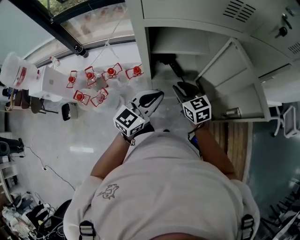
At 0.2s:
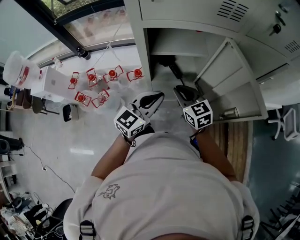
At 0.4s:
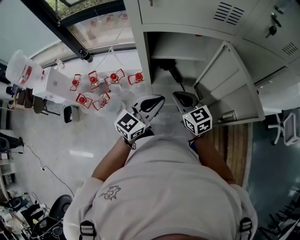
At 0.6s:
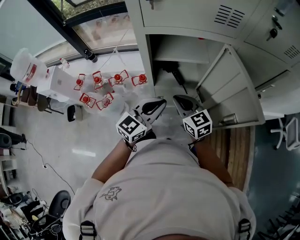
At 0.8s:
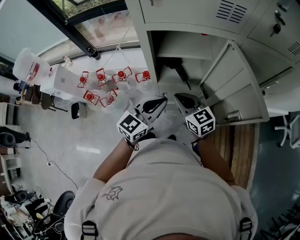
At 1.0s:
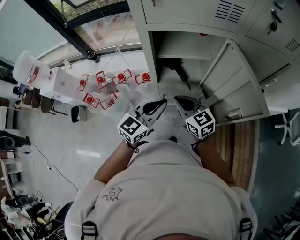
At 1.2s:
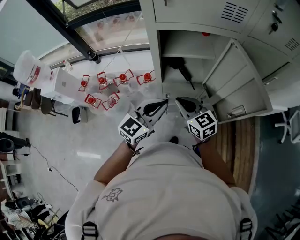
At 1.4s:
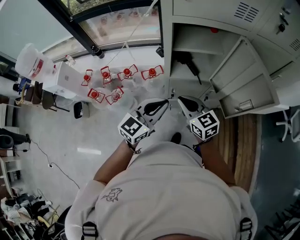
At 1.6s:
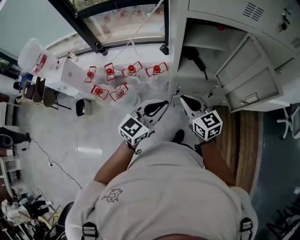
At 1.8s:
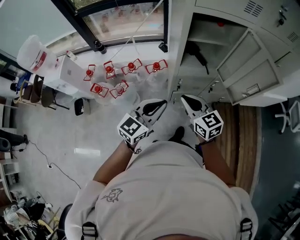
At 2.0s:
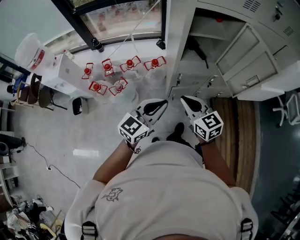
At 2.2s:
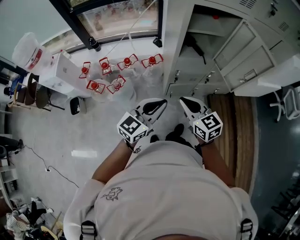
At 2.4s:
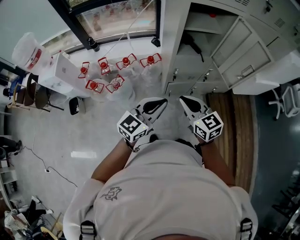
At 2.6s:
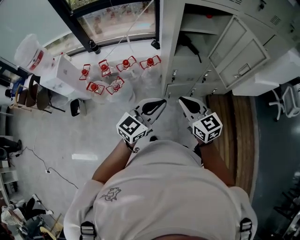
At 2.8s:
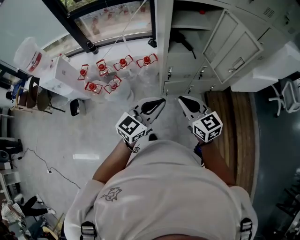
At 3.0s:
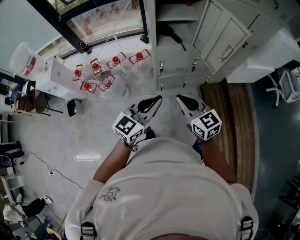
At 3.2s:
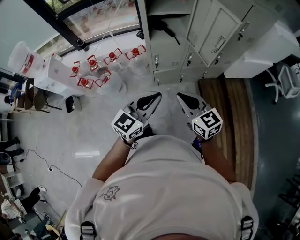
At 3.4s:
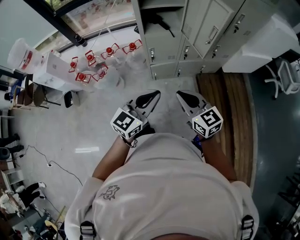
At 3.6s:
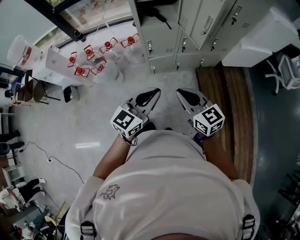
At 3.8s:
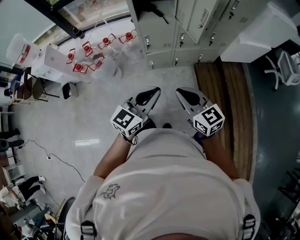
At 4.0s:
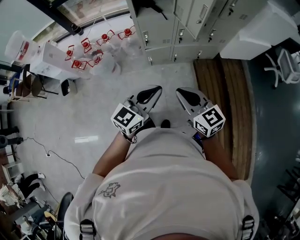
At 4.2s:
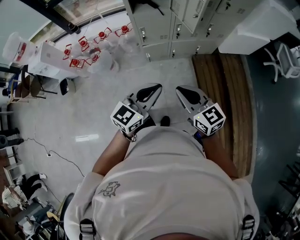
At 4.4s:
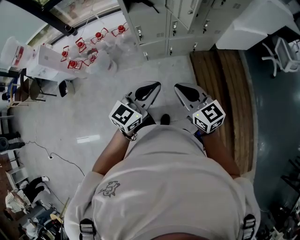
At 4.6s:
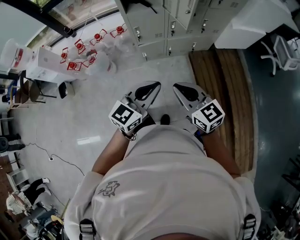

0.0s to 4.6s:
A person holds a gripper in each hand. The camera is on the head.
0.0s to 1.6s: Both grippers travel together backward and to the left, approximately 20 cm.
1.6s to 3.0s: Both grippers move backward, roughly 20 cm.
3.0s to 4.6s: The left gripper goes about 25 cm to the right and backward. Meanwhile the right gripper moves backward and to the right, some 25 cm.

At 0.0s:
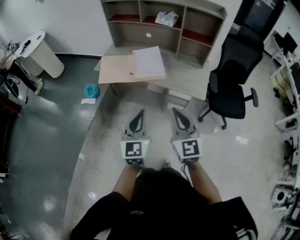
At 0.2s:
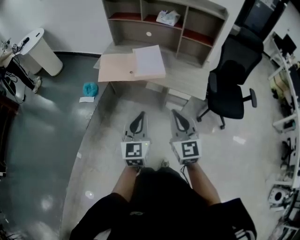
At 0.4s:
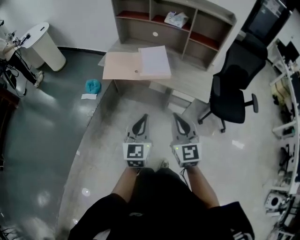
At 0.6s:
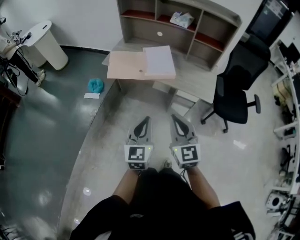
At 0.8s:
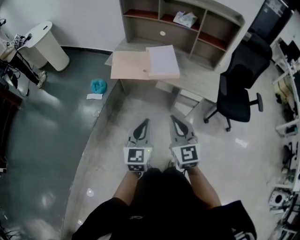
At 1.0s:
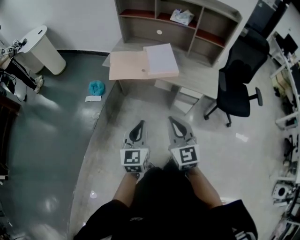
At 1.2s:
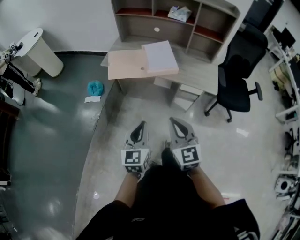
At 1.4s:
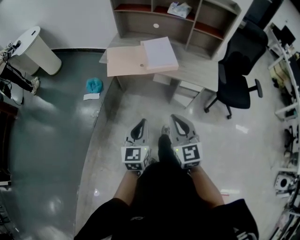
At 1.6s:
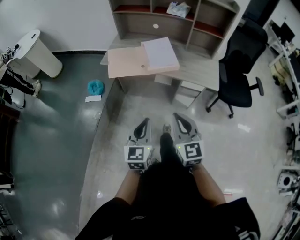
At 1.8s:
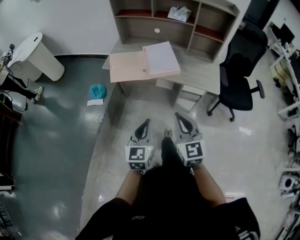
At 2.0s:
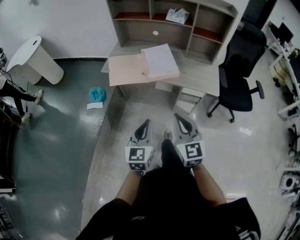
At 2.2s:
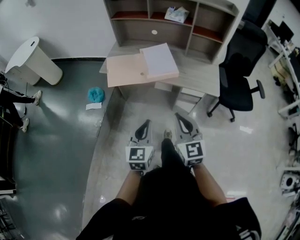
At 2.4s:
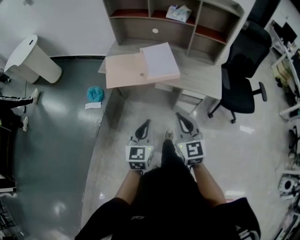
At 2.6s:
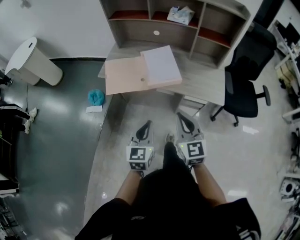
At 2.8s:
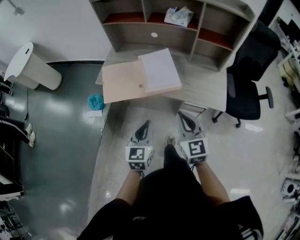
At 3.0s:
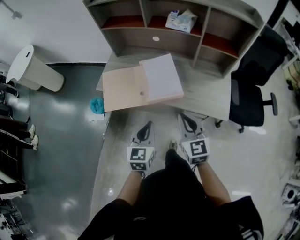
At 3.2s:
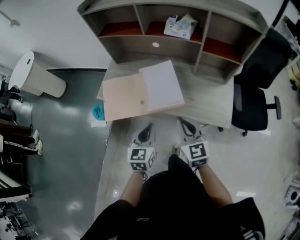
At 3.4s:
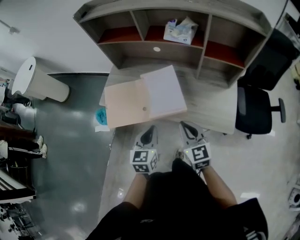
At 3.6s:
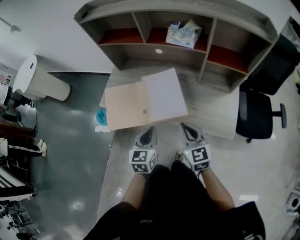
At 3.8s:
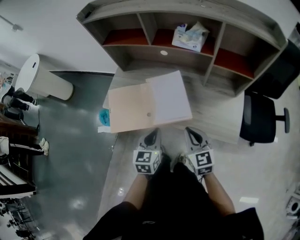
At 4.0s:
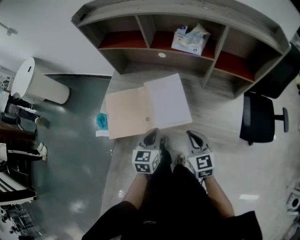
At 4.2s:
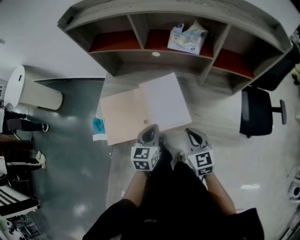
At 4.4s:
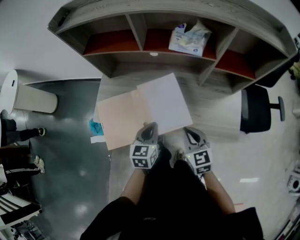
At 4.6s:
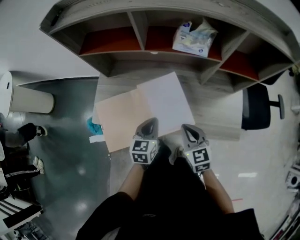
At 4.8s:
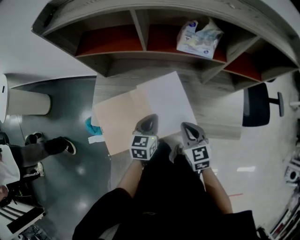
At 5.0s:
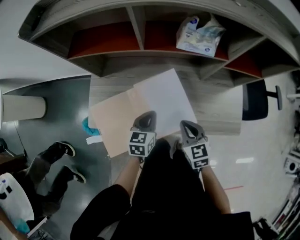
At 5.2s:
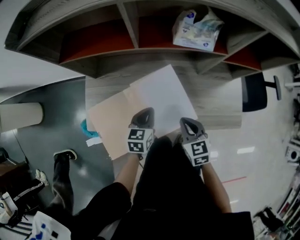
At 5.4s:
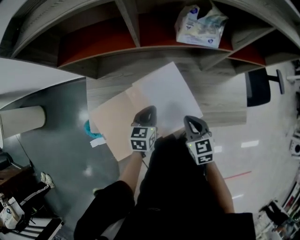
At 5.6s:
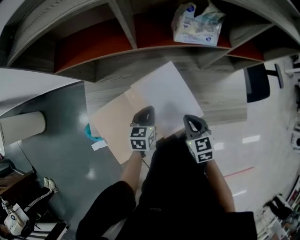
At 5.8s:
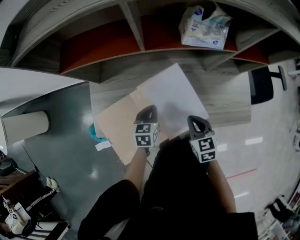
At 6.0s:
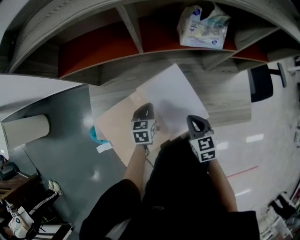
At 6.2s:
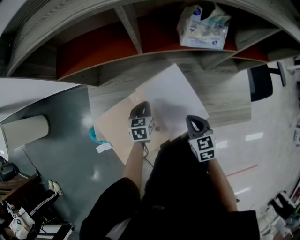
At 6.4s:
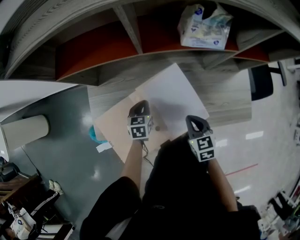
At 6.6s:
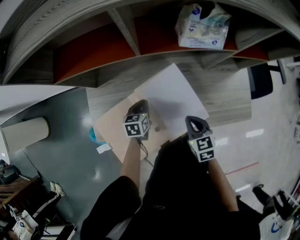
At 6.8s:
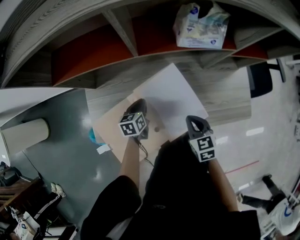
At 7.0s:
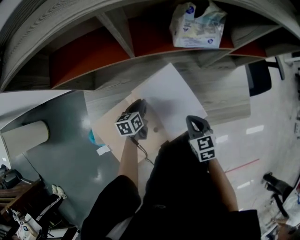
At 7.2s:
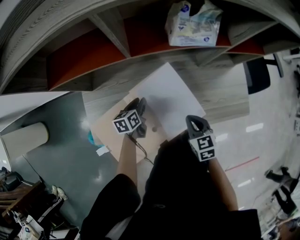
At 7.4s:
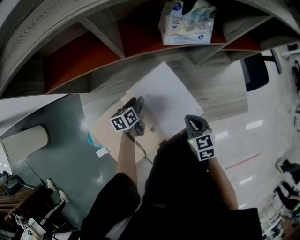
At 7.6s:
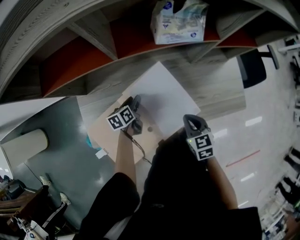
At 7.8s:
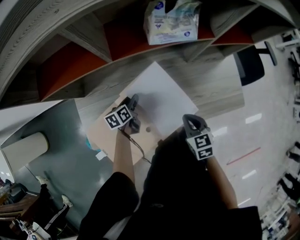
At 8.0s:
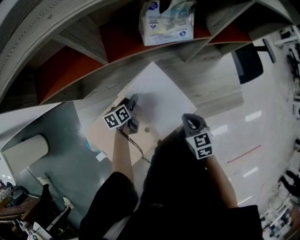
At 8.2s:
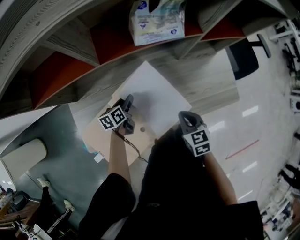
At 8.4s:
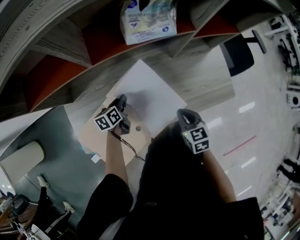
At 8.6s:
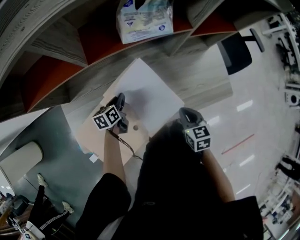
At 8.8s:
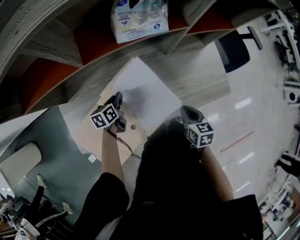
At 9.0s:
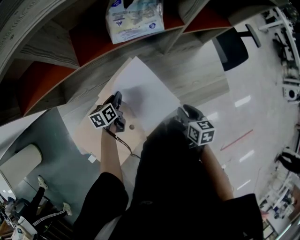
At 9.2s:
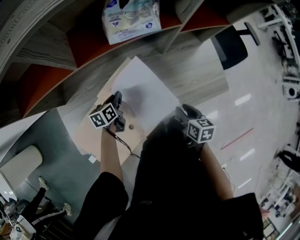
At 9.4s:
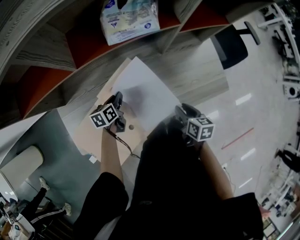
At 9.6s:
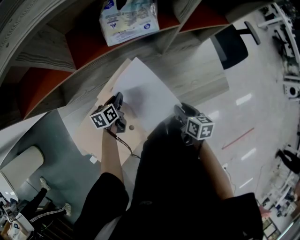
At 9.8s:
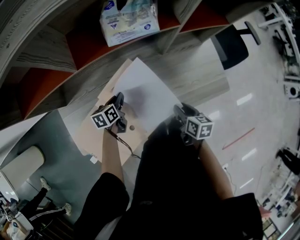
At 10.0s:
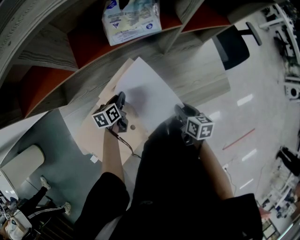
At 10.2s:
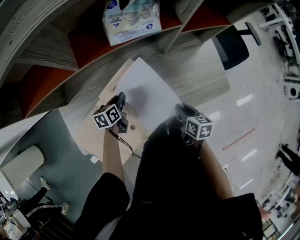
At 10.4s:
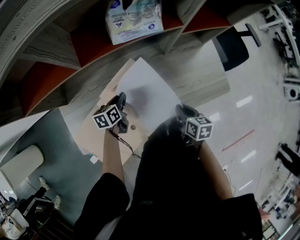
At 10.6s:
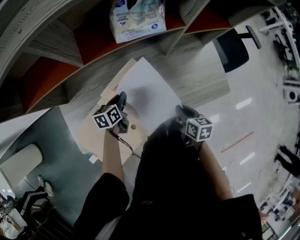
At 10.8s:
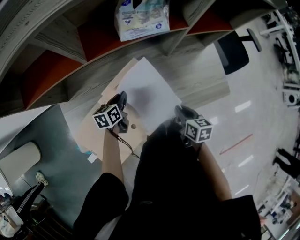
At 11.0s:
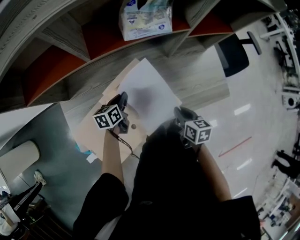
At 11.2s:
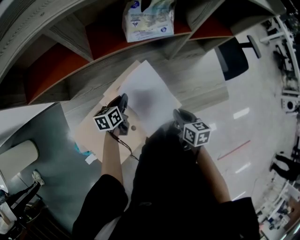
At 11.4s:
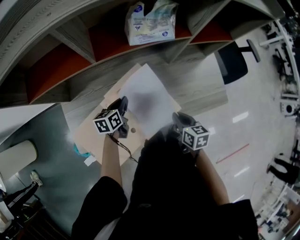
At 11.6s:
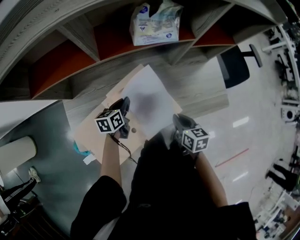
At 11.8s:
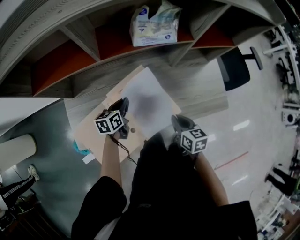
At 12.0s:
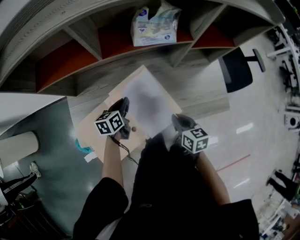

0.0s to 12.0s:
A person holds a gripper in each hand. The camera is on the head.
0.0s to 1.6s: The two grippers go approximately 15 cm to the left and downward.
1.6s to 3.0s: Both grippers travel together forward, some 25 cm.
3.0s to 4.4s: The left gripper goes roughly 20 cm forward. Meanwhile the right gripper moves forward and downward, approximately 20 cm.
4.4s to 6.0s: The left gripper shifts approximately 20 cm downward, forward and to the left. The right gripper moves downward, forward and to the left, about 10 cm, and turns by approximately 20 degrees.
6.0s to 7.6s: The left gripper heads downward and forward, covering some 5 cm, changes its angle by some 30 degrees, and opens.
7.6s to 9.0s: The right gripper shifts some 10 cm to the right, changes its angle by some 30 degrees, and opens up; the left gripper closes.
9.0s to 10.4s: There are only small adjustments of the grippers.
10.4s to 12.0s: The two grippers go approximately 5 cm upward.

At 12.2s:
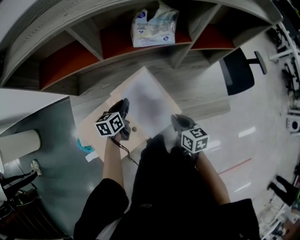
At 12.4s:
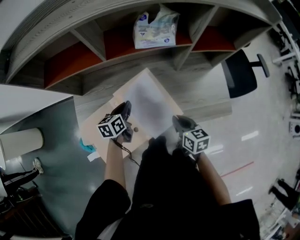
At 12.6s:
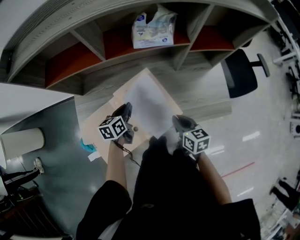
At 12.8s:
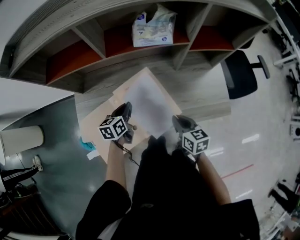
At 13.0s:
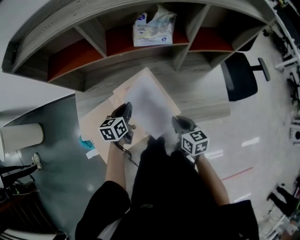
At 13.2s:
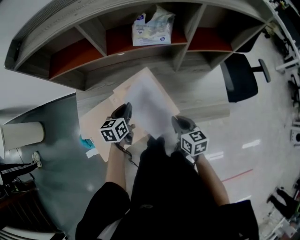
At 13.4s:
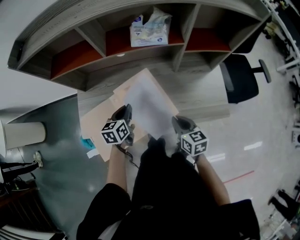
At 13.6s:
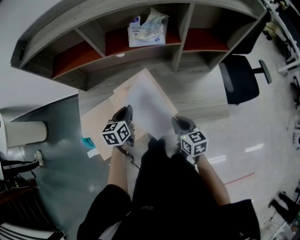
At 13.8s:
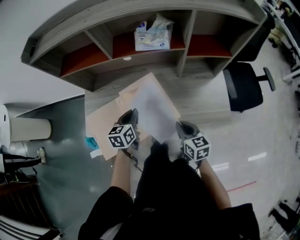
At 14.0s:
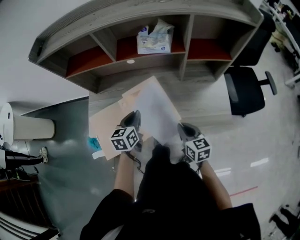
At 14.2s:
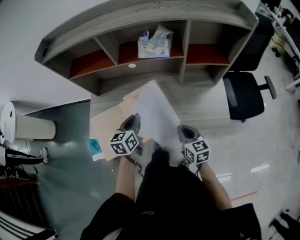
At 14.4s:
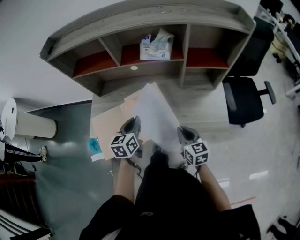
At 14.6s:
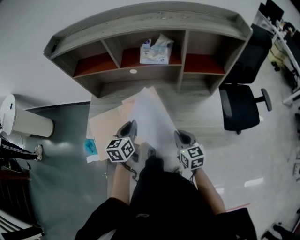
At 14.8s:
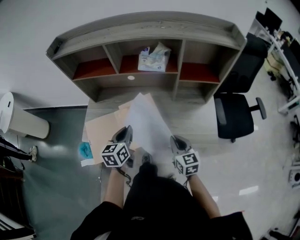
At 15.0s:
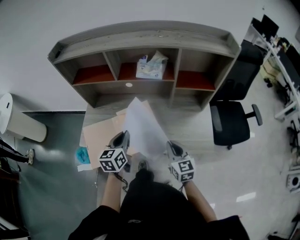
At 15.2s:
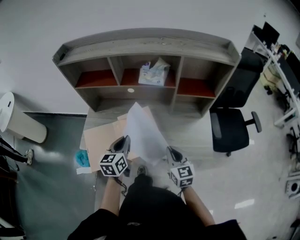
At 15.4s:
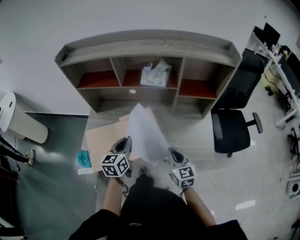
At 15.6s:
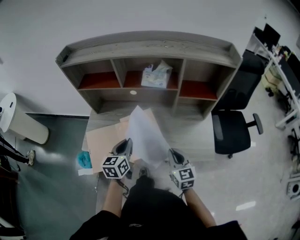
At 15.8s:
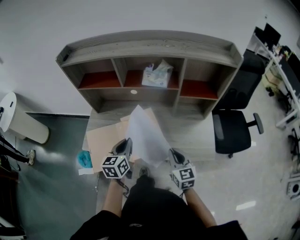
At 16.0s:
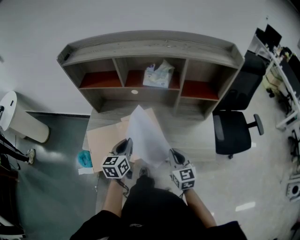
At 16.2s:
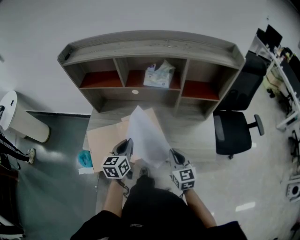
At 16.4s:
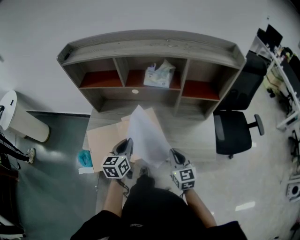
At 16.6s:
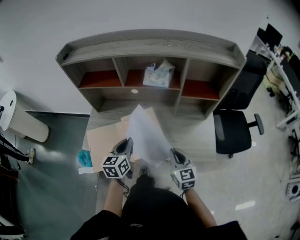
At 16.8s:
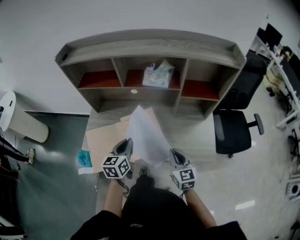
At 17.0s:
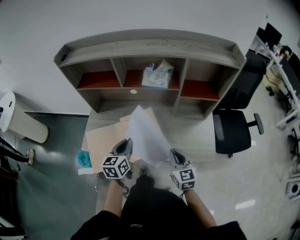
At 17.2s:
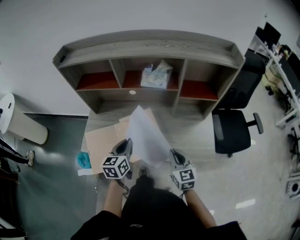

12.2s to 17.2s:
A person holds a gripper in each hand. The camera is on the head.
12.2s to 13.8s: The right gripper shifts by some 5 cm. Meanwhile the left gripper travels backward and upward by about 10 cm.
13.8s to 15.6s: The left gripper travels upward and backward by about 15 cm. Meanwhile the right gripper is displaced upward by roughly 10 cm, and swivels approximately 20 degrees.
15.6s to 17.2s: The two grippers keep their place.

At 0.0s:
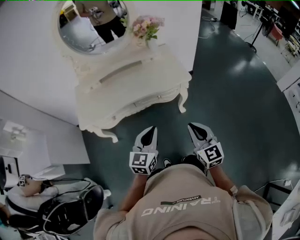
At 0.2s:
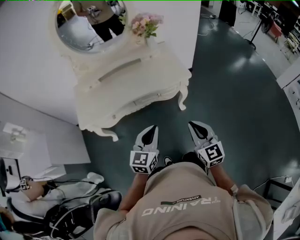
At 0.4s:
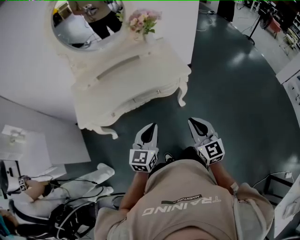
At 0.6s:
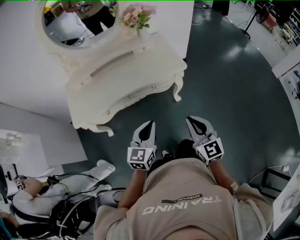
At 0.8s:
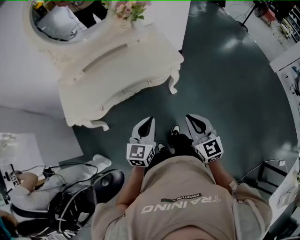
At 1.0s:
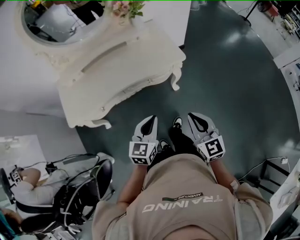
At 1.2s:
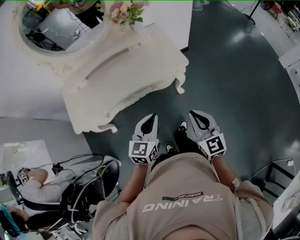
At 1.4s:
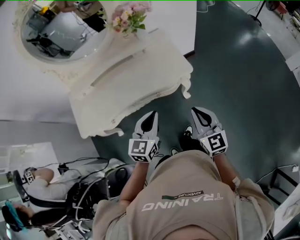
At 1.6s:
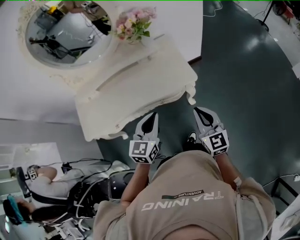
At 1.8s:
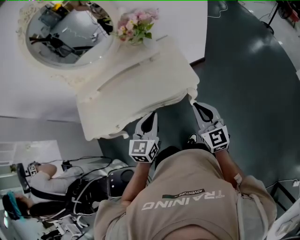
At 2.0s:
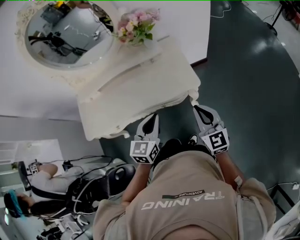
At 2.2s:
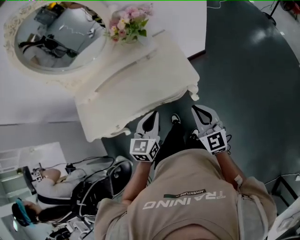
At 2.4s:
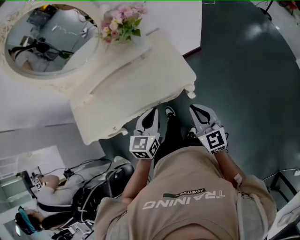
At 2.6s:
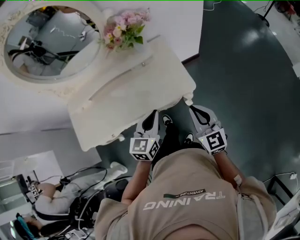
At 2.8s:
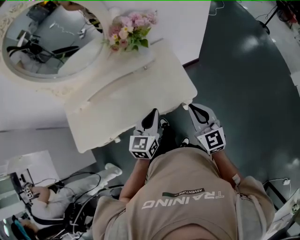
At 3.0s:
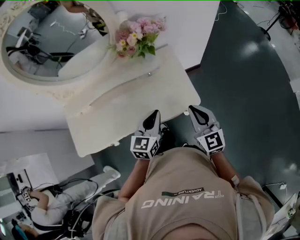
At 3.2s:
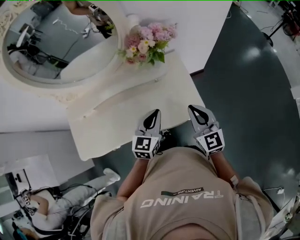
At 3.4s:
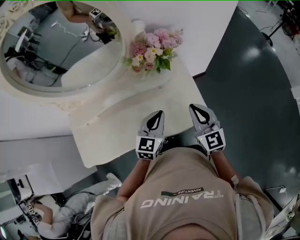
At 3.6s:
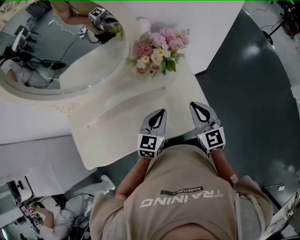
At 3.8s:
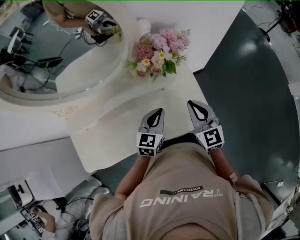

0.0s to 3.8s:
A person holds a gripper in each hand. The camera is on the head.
0.0s to 1.2s: The left gripper is displaced forward and downward by roughly 15 cm; the right gripper moves forward, approximately 10 cm.
1.2s to 2.6s: Both grippers move forward, about 15 cm.
2.6s to 3.8s: The grippers both shift forward and to the left by some 20 cm.
